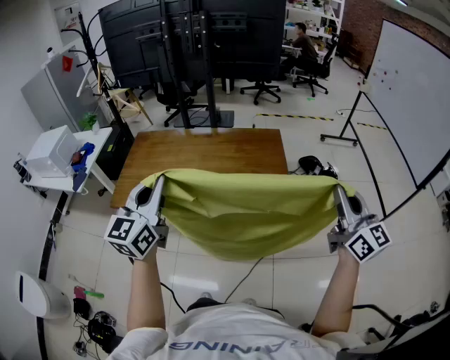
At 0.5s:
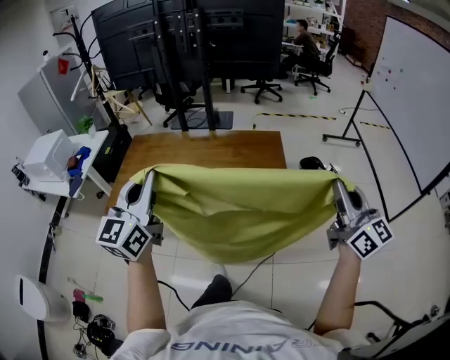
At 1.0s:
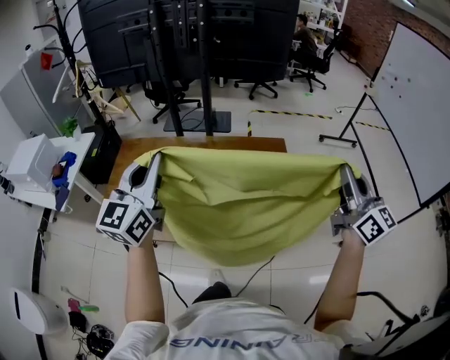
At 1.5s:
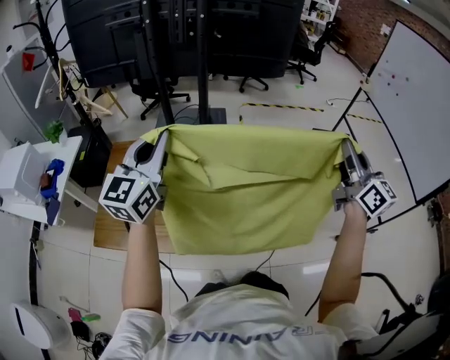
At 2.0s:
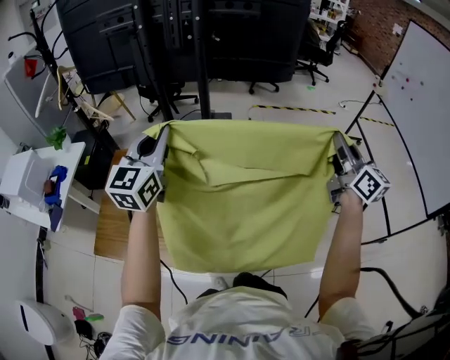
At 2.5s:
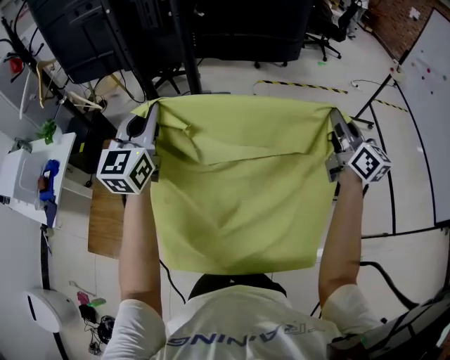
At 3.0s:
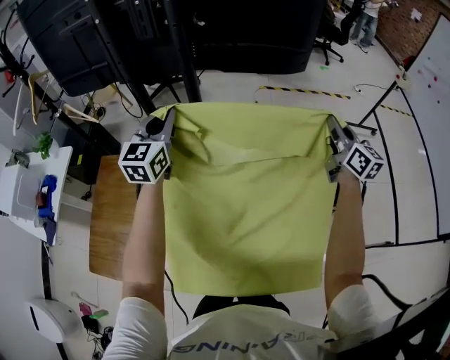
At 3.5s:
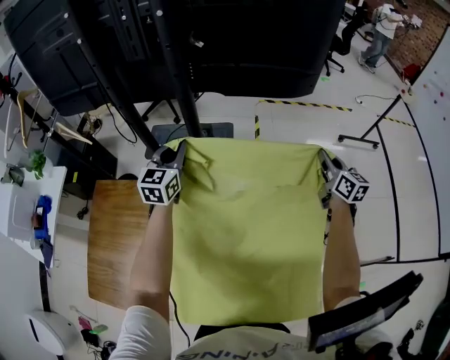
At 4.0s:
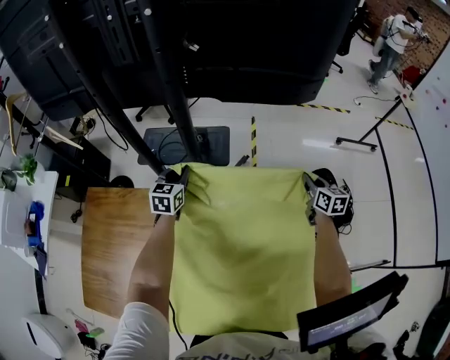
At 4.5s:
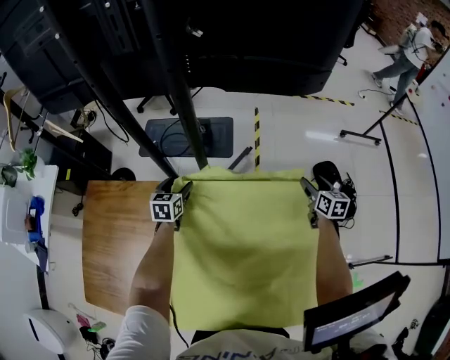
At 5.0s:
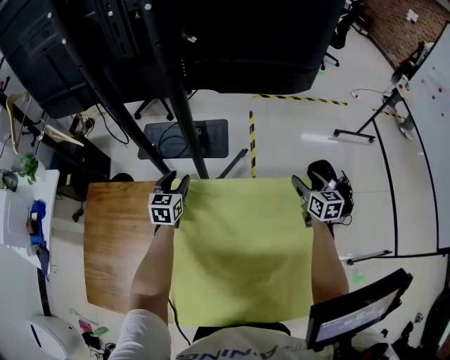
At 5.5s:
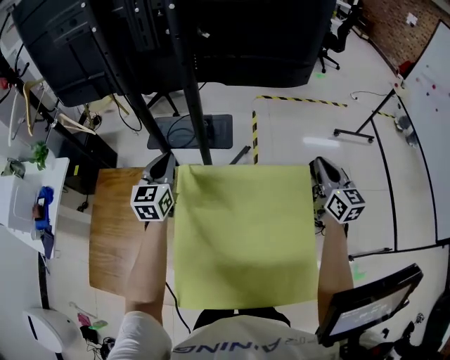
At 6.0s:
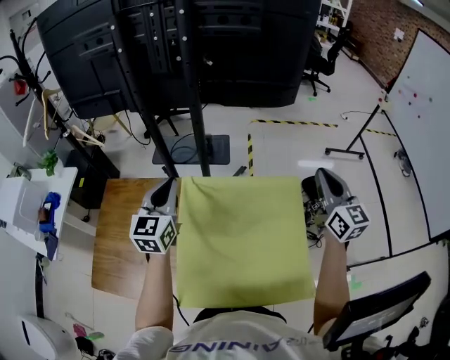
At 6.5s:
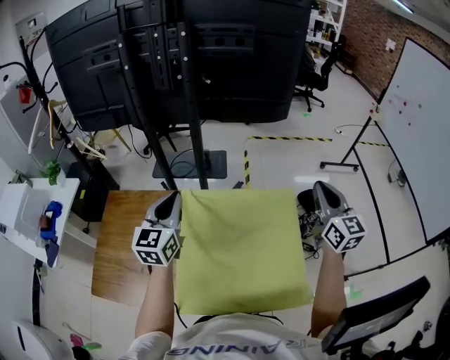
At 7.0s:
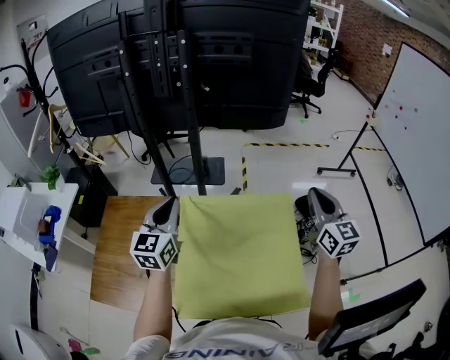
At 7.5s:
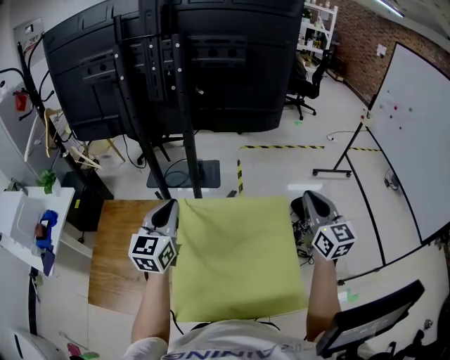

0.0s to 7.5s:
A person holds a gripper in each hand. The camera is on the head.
0.0s to 2.0s: Both grippers are carried forward, roughly 40 cm.
2.0s to 4.0s: The two grippers go approximately 50 cm downward and forward. The left gripper tilts its fingers about 30 degrees downward. Meanwhile the right gripper tilts its fingers about 30 degrees downward.
4.0s to 5.5s: Both grippers travel together upward and backward, approximately 20 cm. The right gripper swivels some 20 degrees, and opens, then closes once more. Meanwhile the left gripper opens and closes again.
5.5s to 7.5s: The two grippers go approximately 20 cm backward and upward.

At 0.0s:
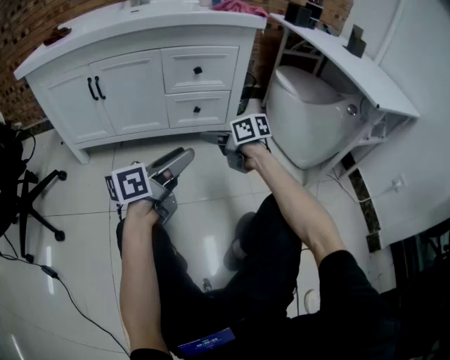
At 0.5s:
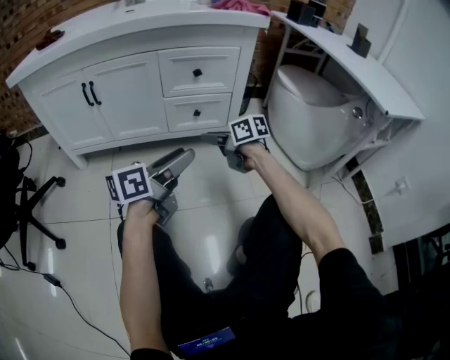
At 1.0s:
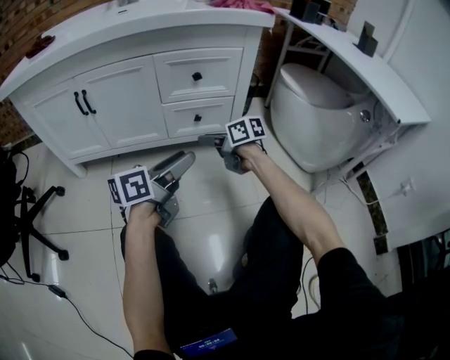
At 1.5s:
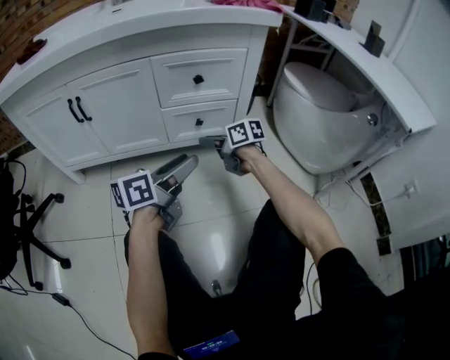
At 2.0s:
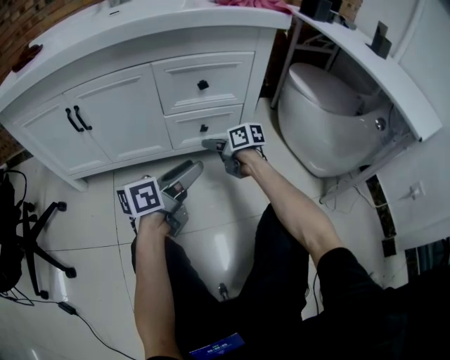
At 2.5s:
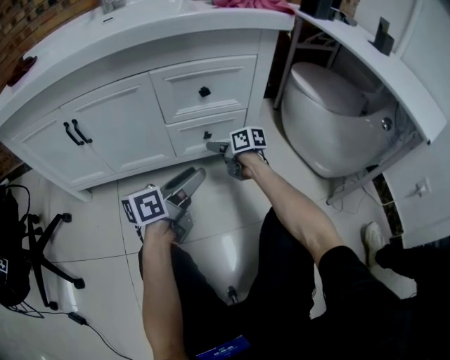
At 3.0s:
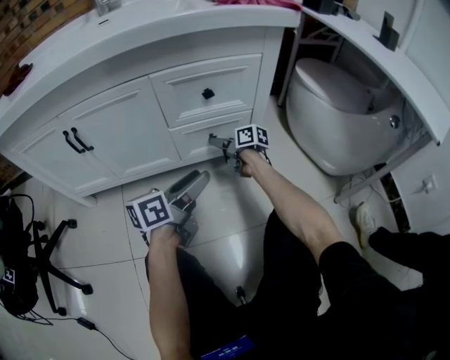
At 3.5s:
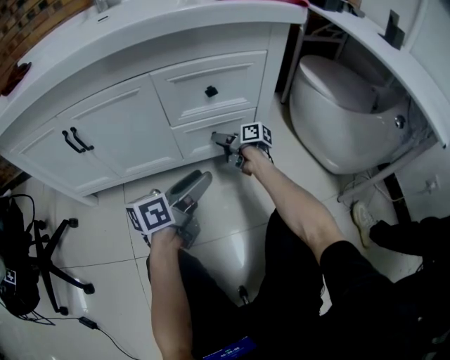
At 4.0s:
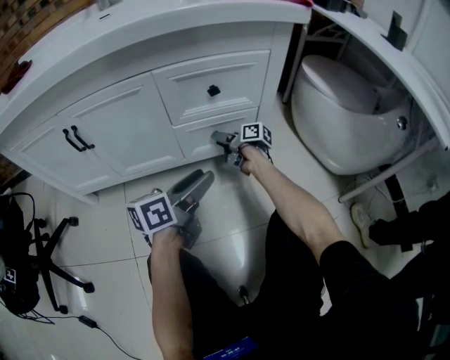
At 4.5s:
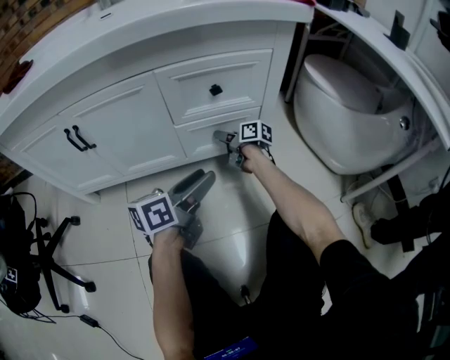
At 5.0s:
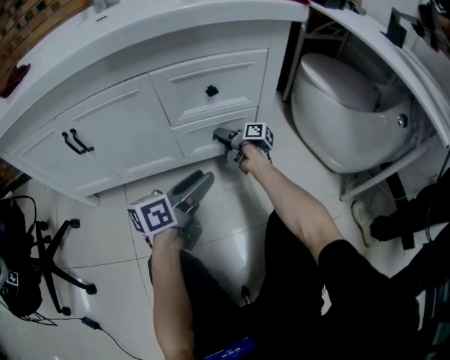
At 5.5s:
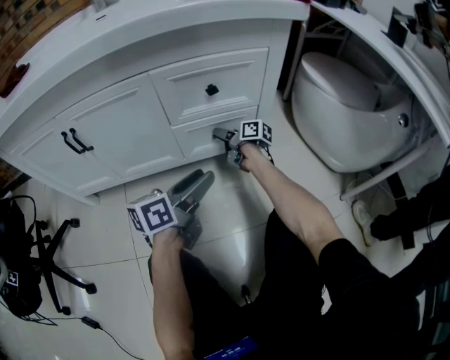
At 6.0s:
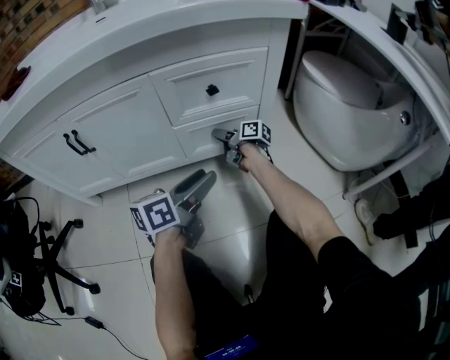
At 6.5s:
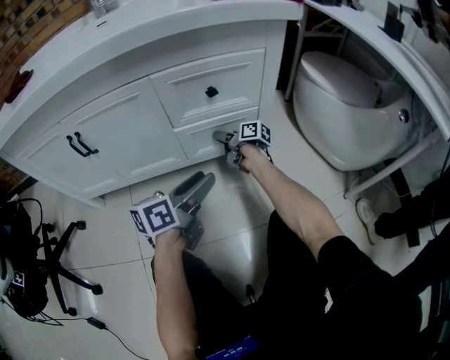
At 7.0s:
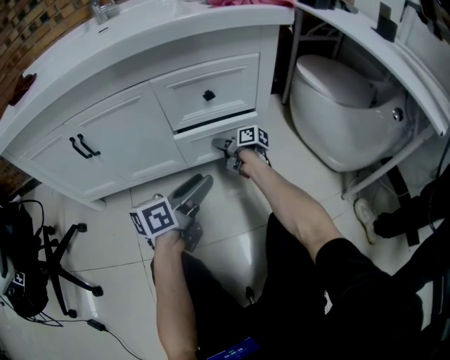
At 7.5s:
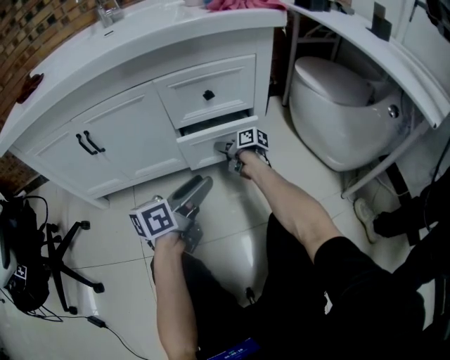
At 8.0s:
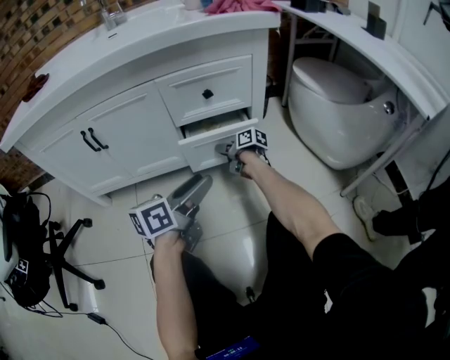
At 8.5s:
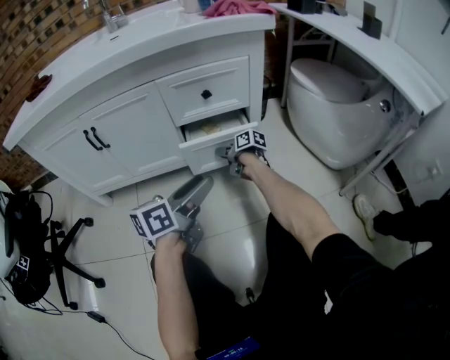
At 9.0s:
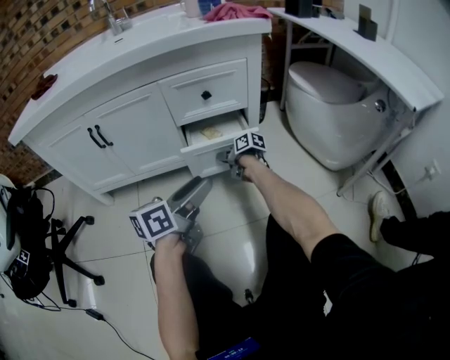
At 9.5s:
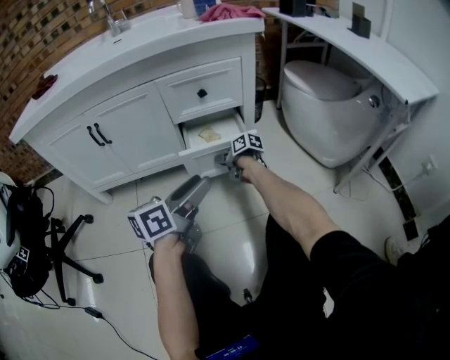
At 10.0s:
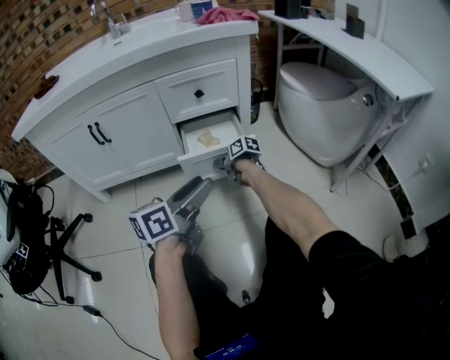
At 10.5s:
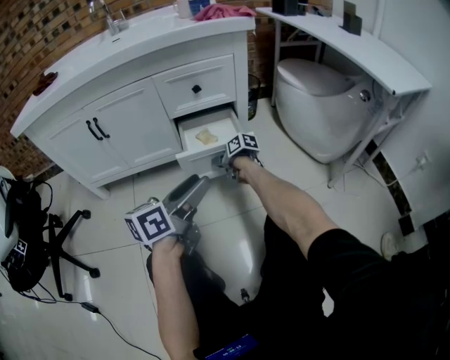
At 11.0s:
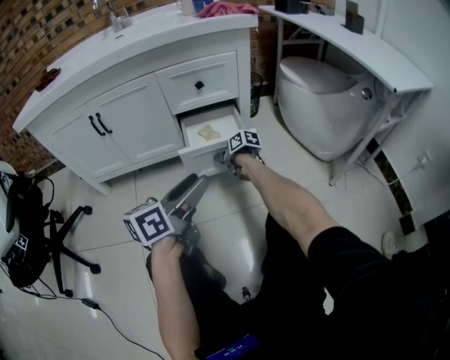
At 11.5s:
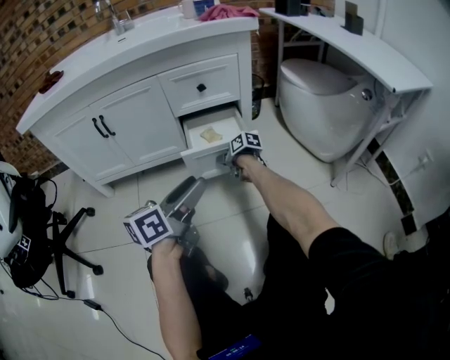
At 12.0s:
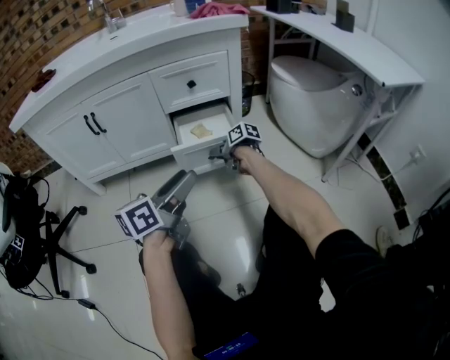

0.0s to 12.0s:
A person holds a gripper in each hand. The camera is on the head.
0.0s to 2.0s: The grippers both shift forward and downward by roughly 20 cm.
2.0s to 4.0s: The right gripper travels forward and downward by about 10 cm, and turns by roughly 30 degrees.
6.0s to 8.0s: The two grippers go roughly 5 cm backward.
8.0s to 10.0s: Both grippers move backward, some 10 cm.
10.0s to 12.0s: The right gripper moves approximately 5 cm.

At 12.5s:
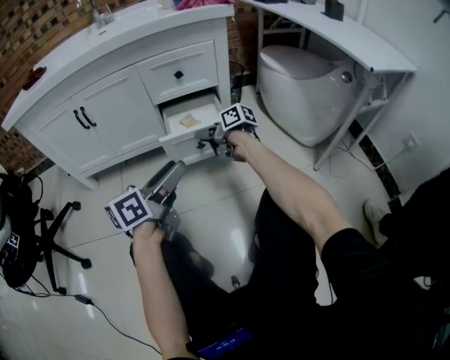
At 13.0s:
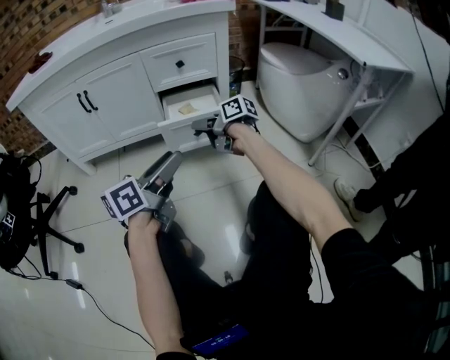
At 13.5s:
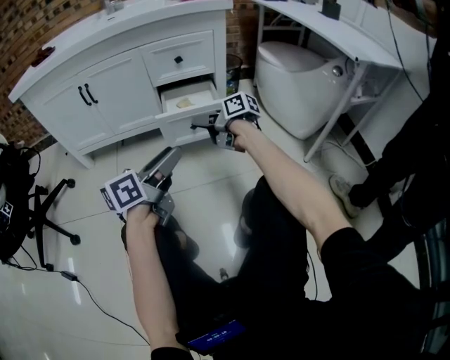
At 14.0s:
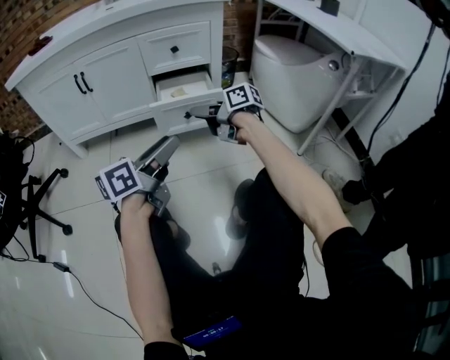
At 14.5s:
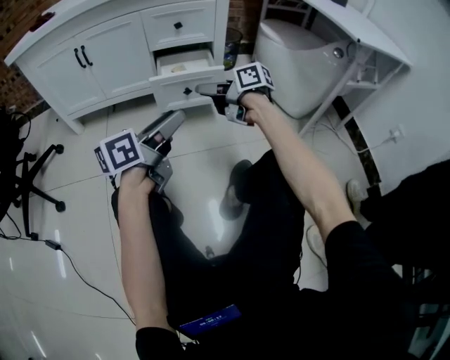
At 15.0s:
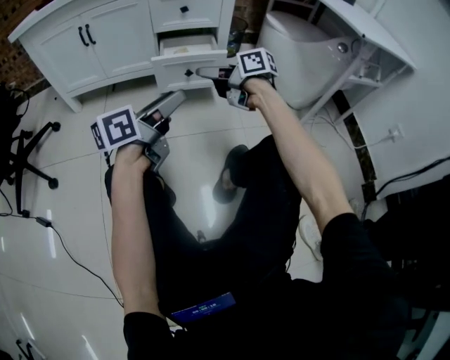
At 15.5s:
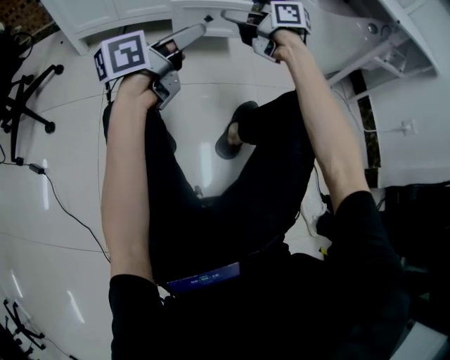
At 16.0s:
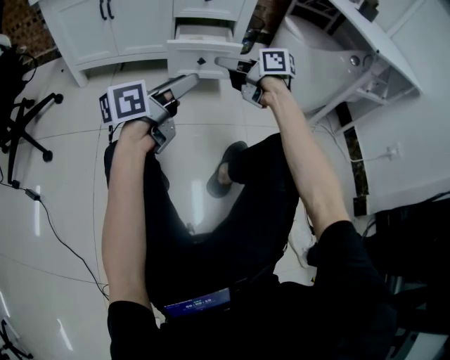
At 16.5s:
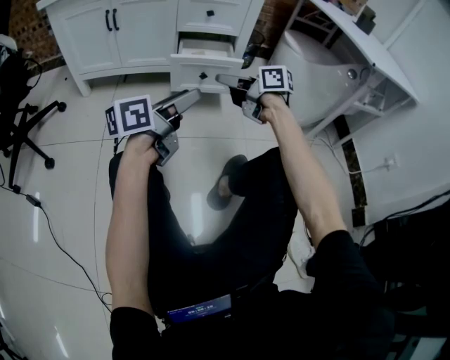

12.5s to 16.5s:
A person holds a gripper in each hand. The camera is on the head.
12.5s to 14.5s: The right gripper travels backward and upward by about 15 cm. Meanwhile the left gripper moves backward, about 10 cm.
14.5s to 16.5s: The grippers make only small movements.

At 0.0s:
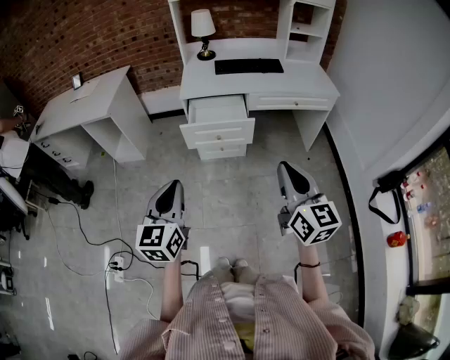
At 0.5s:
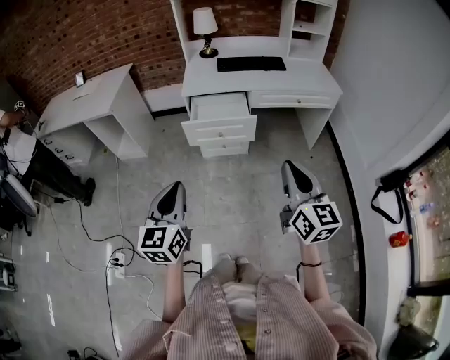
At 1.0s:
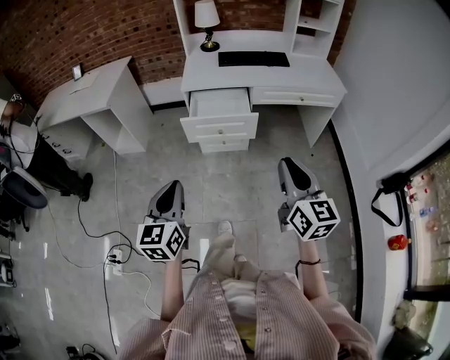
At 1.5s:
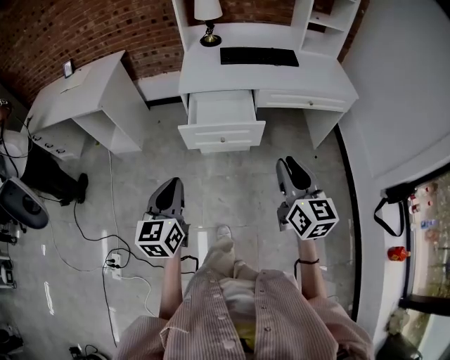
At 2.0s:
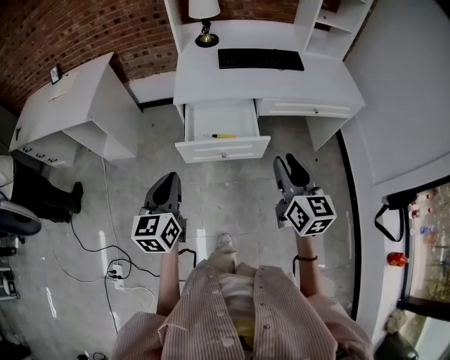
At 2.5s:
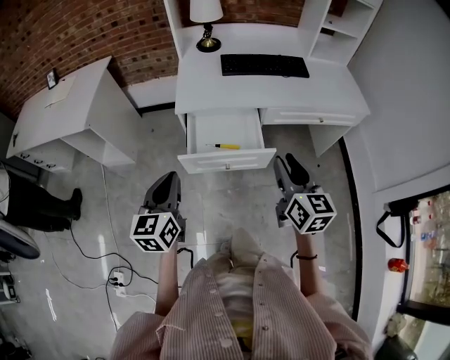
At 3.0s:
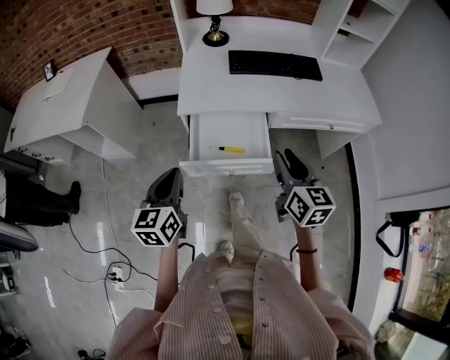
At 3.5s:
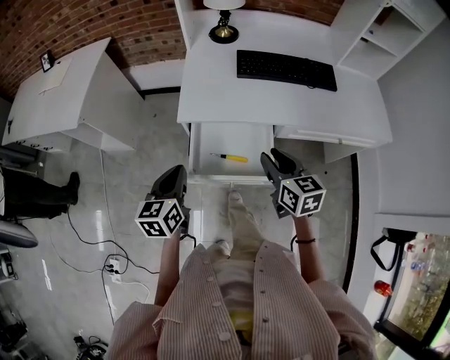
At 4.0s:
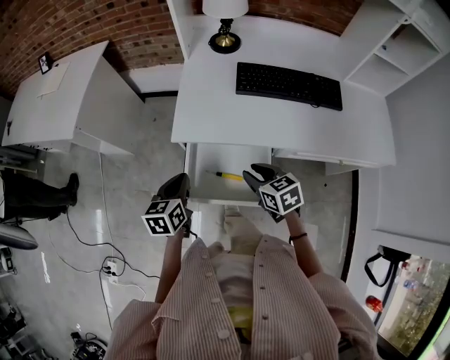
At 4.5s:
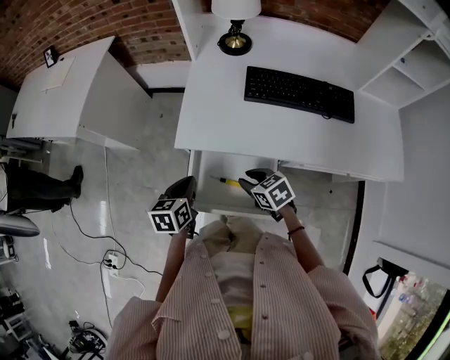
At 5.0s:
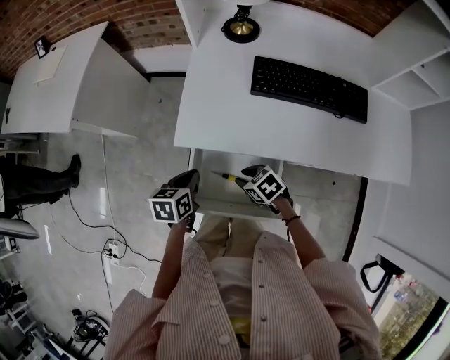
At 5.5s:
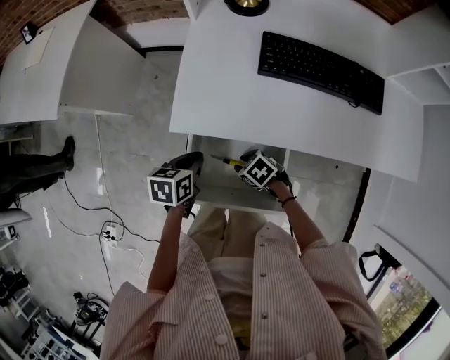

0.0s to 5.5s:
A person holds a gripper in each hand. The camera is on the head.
0.0s to 2.0s: The two grippers go roughly 25 cm forward. The right gripper opens.
2.0s to 3.5s: Both grippers move forward, about 20 cm. The right gripper turns by approximately 20 degrees.
3.5s to 5.5s: The left gripper shifts approximately 15 cm downward, and rotates about 30 degrees. The right gripper goes roughly 25 cm downward, and tilts its fingers about 40 degrees downward.
